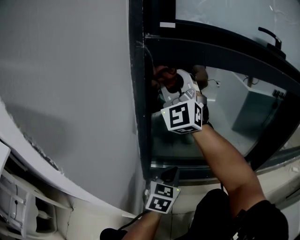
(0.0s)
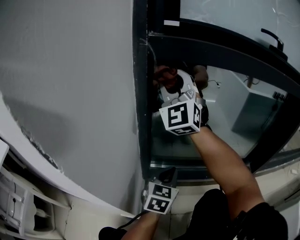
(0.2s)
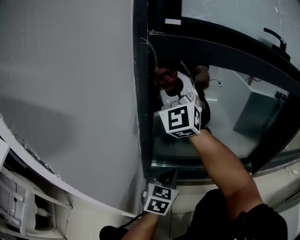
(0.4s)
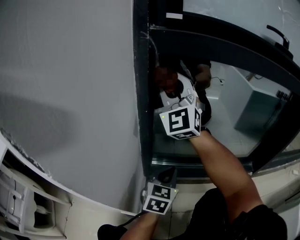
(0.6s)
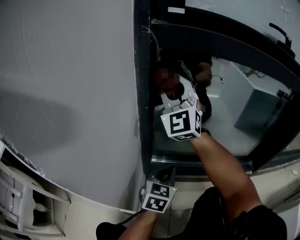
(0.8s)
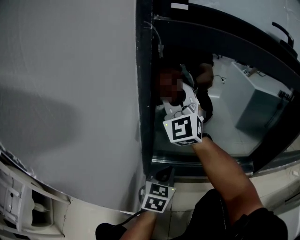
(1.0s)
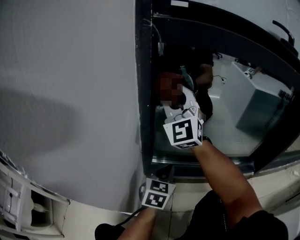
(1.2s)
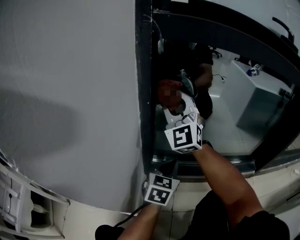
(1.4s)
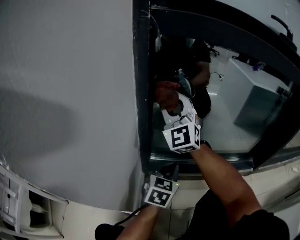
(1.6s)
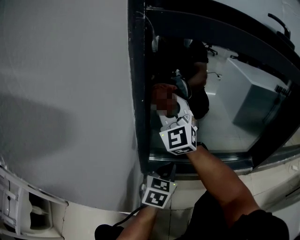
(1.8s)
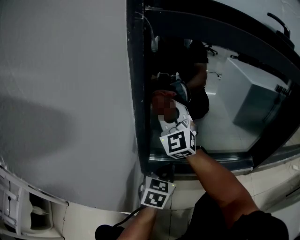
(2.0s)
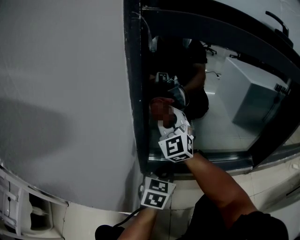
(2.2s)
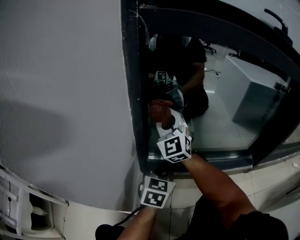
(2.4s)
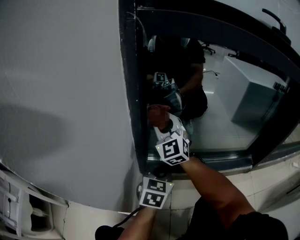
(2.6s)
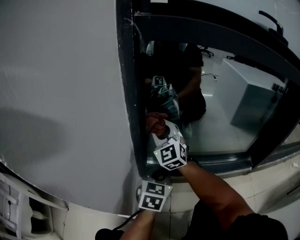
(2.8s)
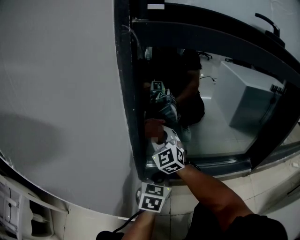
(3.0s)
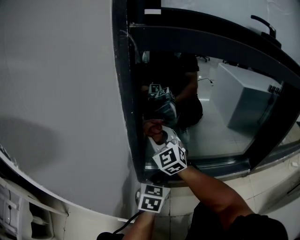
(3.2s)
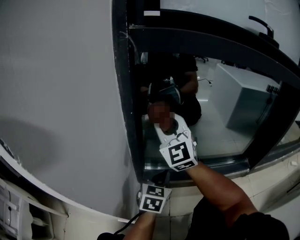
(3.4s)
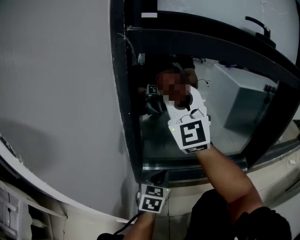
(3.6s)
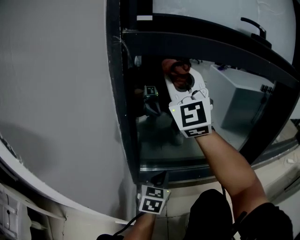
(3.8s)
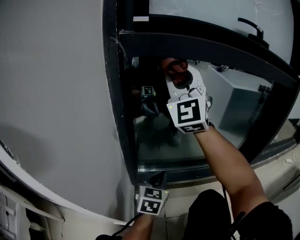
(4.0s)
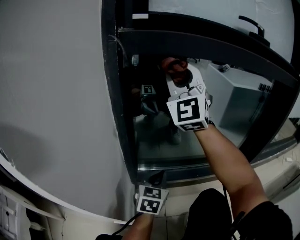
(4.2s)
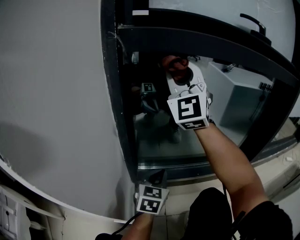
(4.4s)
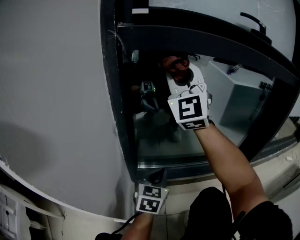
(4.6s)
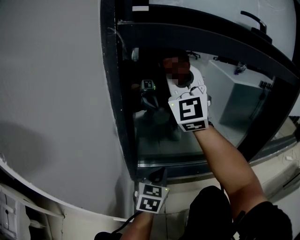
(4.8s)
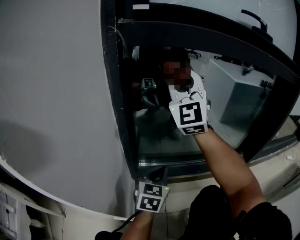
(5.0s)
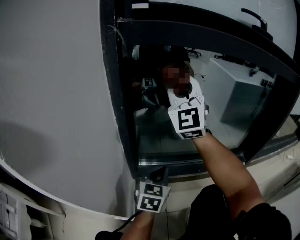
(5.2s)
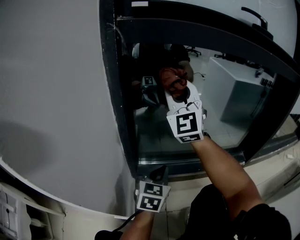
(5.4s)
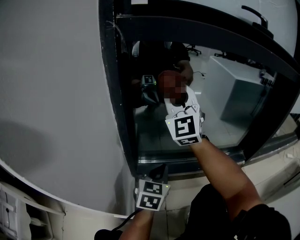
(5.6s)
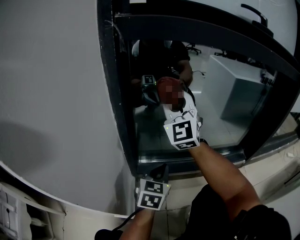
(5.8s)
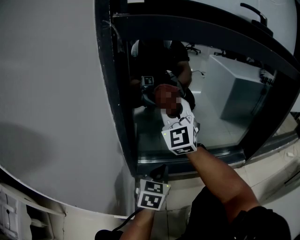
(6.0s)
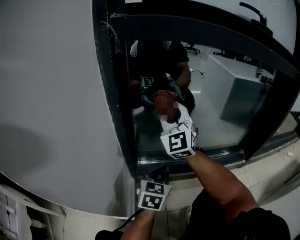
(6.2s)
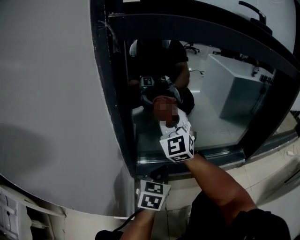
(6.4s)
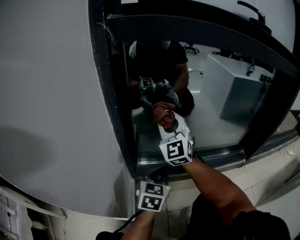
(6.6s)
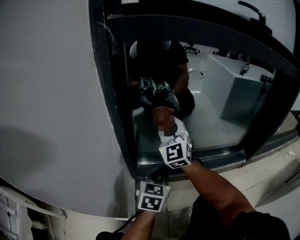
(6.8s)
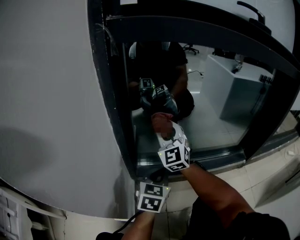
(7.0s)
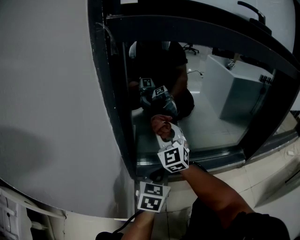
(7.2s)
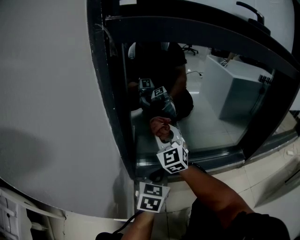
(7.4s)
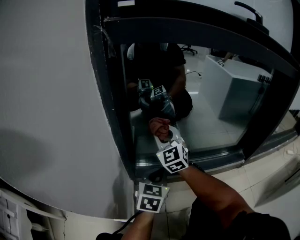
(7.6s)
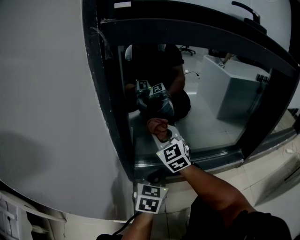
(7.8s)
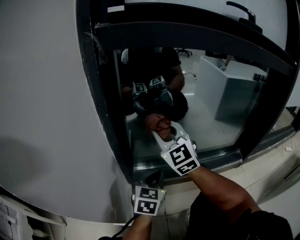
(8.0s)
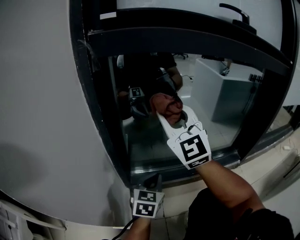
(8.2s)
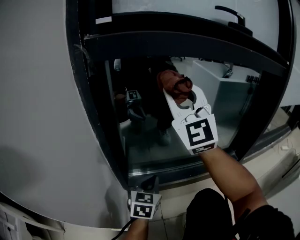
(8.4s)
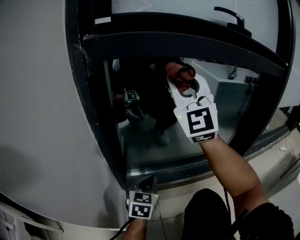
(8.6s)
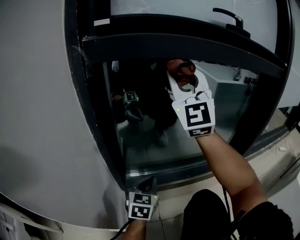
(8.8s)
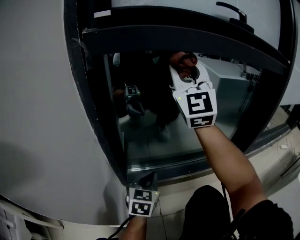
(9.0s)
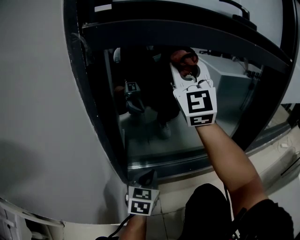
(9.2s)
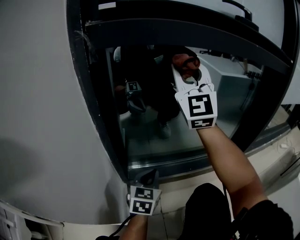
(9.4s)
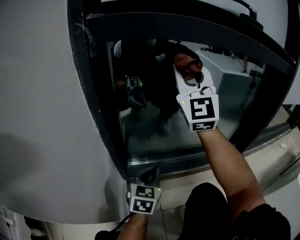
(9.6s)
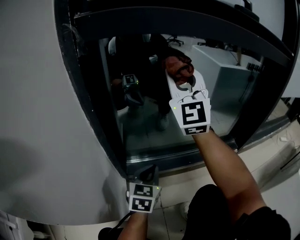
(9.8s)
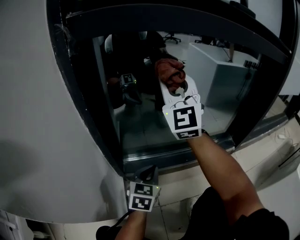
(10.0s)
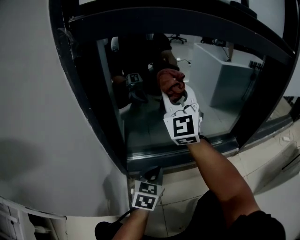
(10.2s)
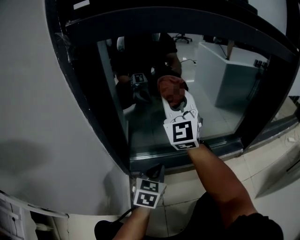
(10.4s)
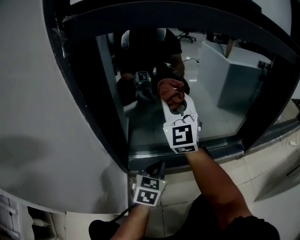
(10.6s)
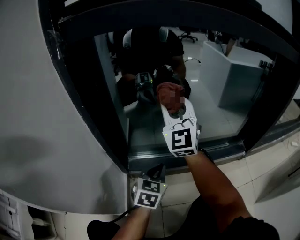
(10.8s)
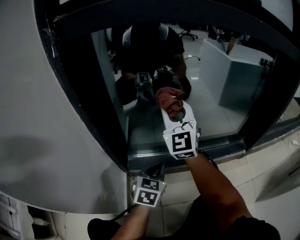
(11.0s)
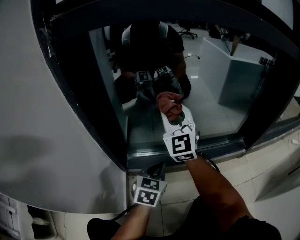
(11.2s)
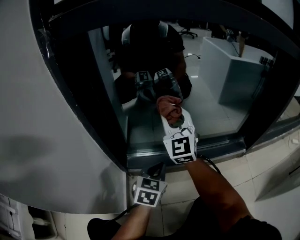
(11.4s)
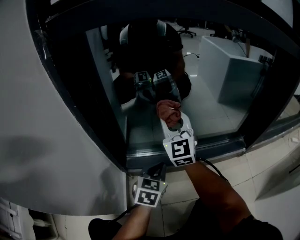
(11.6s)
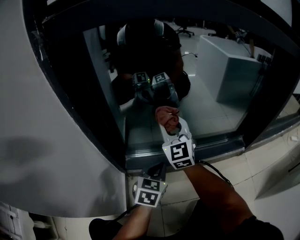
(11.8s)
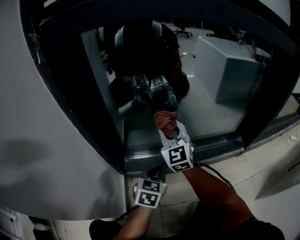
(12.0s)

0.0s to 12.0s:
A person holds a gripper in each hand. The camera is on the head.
0.0s to 1.6s: The right gripper moves downward, approximately 15 cm, while the left gripper shifts approximately 5 cm downward.
1.6s to 3.0s: The right gripper shifts approximately 15 cm downward.
3.0s to 4.4s: The right gripper travels upward by approximately 30 cm, and swivels about 30 degrees.
4.4s to 6.0s: The right gripper shifts some 15 cm downward.
6.0s to 7.6s: The right gripper shifts about 15 cm downward, and changes its angle by about 20 degrees.
7.6s to 9.0s: The right gripper heads upward, covering some 30 cm, and tips its fingers upward by approximately 30 degrees.
9.0s to 10.4s: The right gripper heads downward, covering some 15 cm.
10.4s to 12.0s: The left gripper changes place by some 5 cm; the right gripper moves downward, approximately 15 cm.

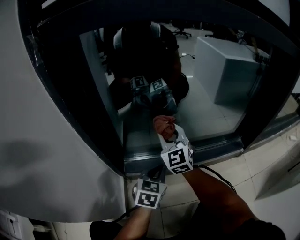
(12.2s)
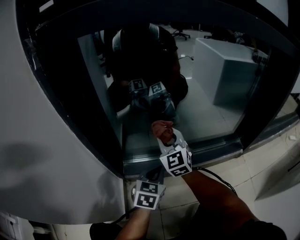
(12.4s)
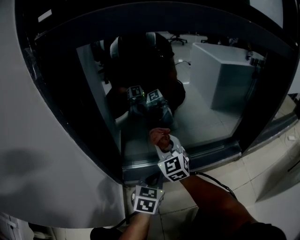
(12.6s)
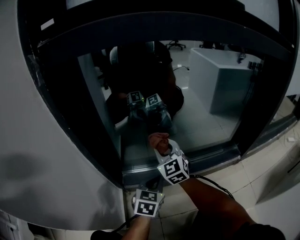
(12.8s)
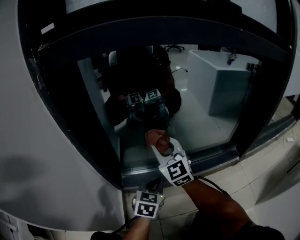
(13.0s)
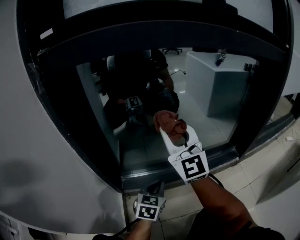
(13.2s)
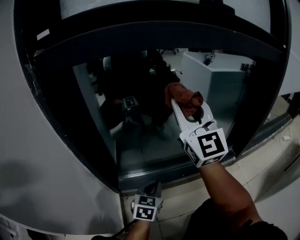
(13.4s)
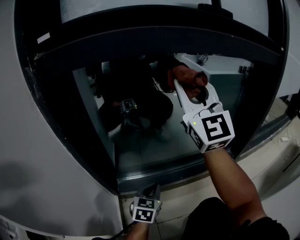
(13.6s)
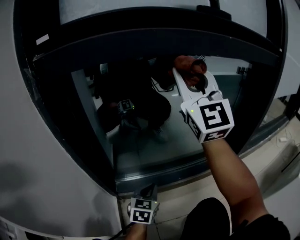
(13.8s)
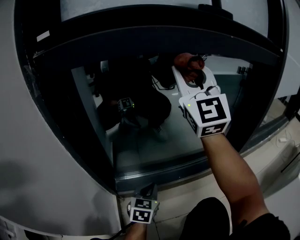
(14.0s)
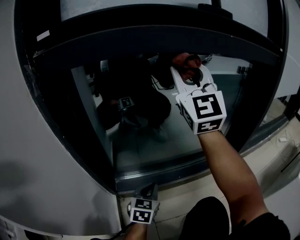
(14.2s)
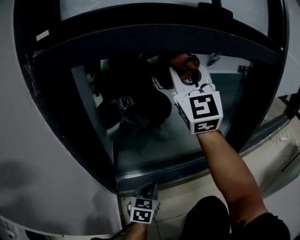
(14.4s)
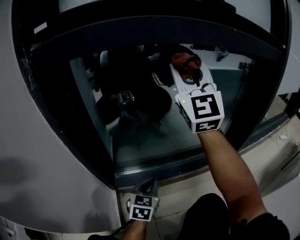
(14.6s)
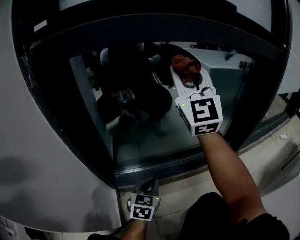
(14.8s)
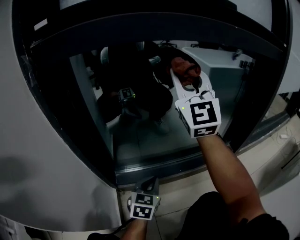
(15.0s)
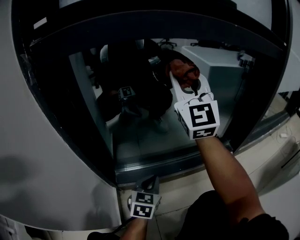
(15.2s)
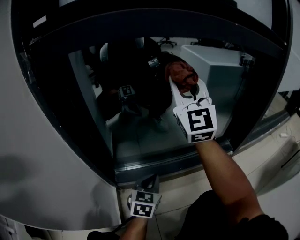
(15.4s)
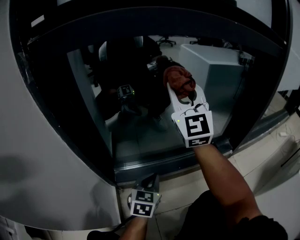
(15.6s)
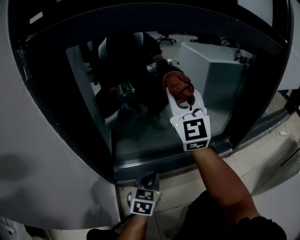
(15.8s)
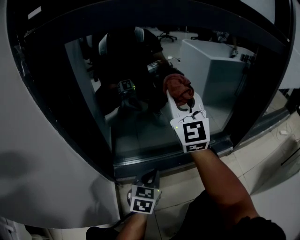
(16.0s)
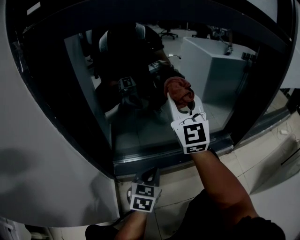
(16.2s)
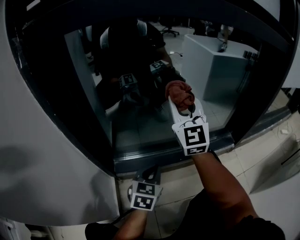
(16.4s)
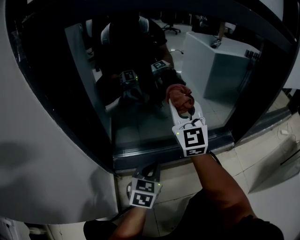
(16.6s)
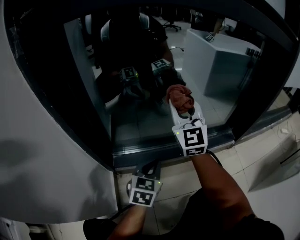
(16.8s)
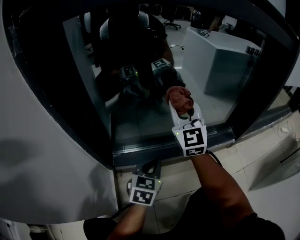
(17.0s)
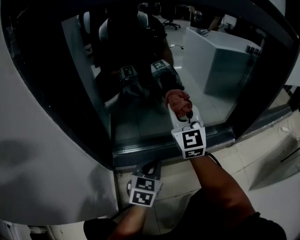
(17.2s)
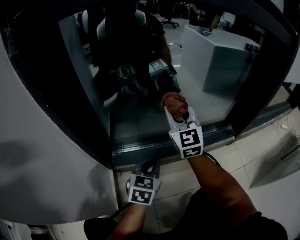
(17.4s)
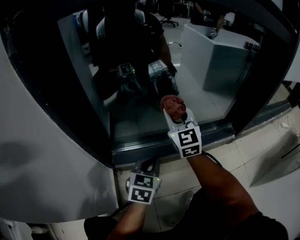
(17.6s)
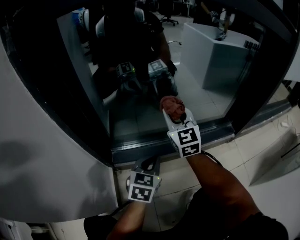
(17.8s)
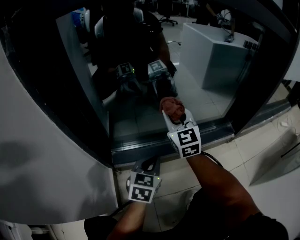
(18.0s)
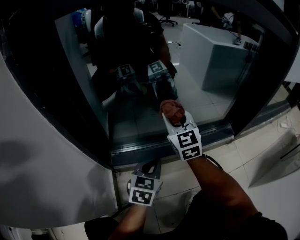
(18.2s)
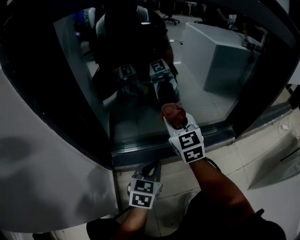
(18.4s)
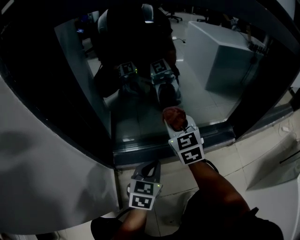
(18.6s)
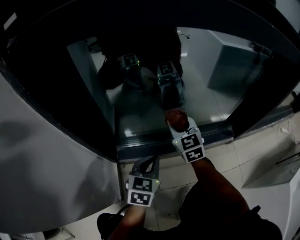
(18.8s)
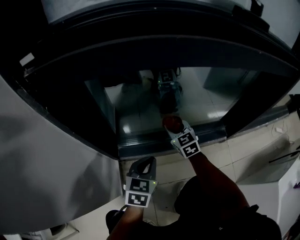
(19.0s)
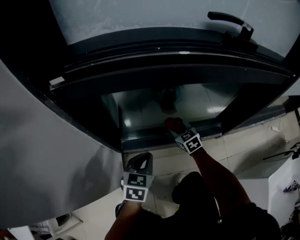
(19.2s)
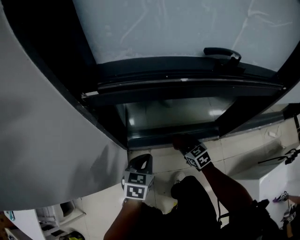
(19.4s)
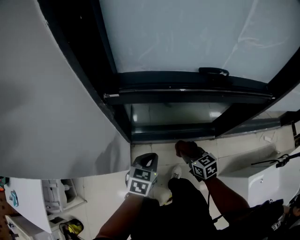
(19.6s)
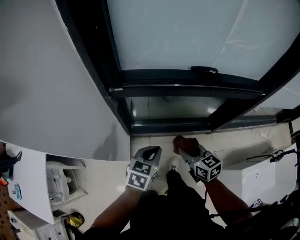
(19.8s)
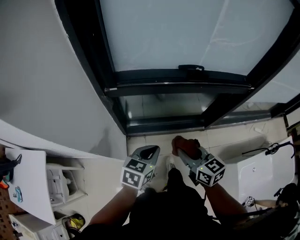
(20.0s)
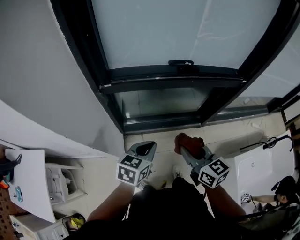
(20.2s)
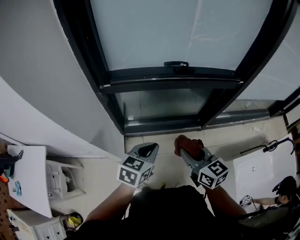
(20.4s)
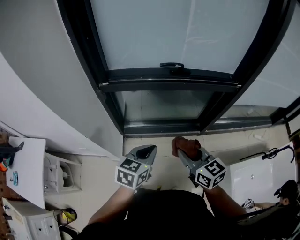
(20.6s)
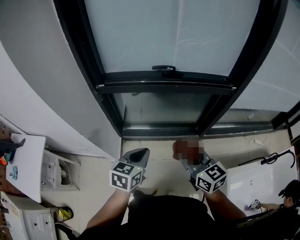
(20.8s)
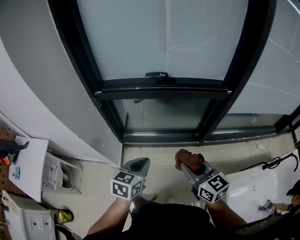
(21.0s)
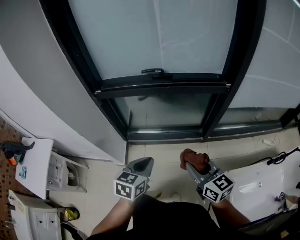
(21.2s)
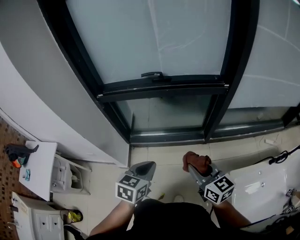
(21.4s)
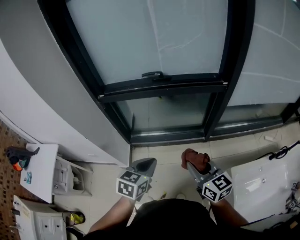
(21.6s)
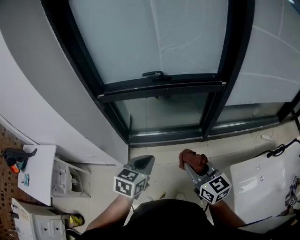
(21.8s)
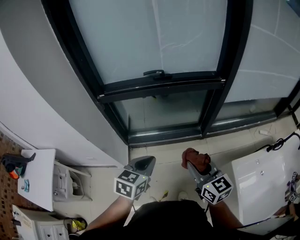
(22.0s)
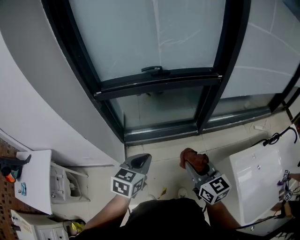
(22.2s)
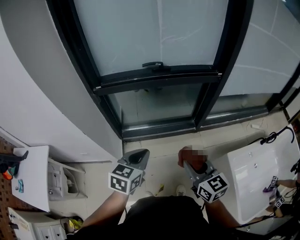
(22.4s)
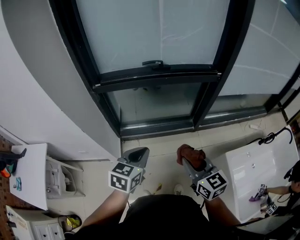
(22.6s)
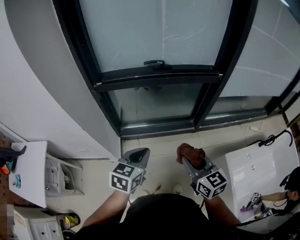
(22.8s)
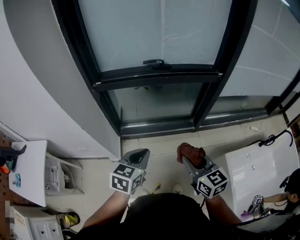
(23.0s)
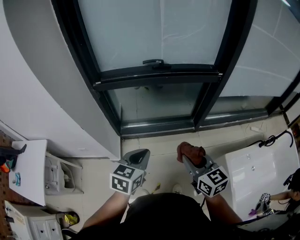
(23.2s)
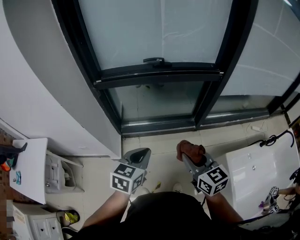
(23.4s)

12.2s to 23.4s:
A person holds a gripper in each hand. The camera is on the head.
12.2s to 13.8s: The right gripper shifts about 35 cm upward, and swivels some 30 degrees.
13.8s to 15.4s: The right gripper is displaced downward by about 10 cm.
15.4s to 17.0s: The right gripper moves downward, roughly 20 cm.
17.0s to 18.6s: The right gripper is displaced downward by about 10 cm, and changes its angle by roughly 30 degrees.
18.6s to 20.2s: The two grippers go approximately 60 cm upward and backward. The right gripper turns by approximately 30 degrees.
20.2s to 21.8s: The left gripper travels to the right, backward and upward by some 20 cm, while the right gripper is displaced to the right and backward by roughly 25 cm.
21.8s to 23.4s: The left gripper shifts by about 5 cm.

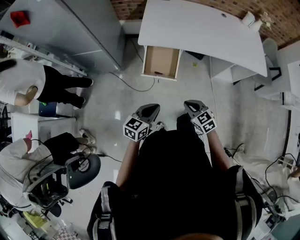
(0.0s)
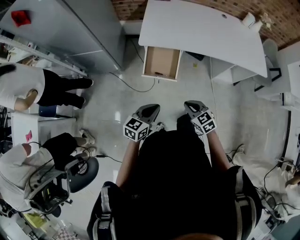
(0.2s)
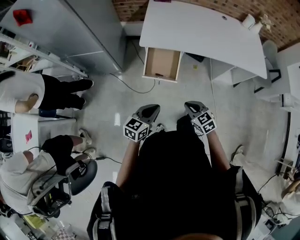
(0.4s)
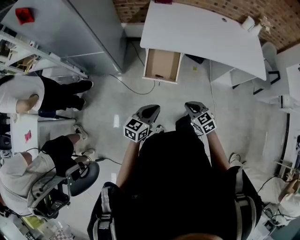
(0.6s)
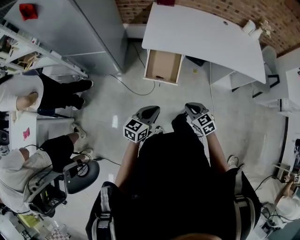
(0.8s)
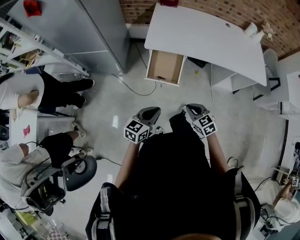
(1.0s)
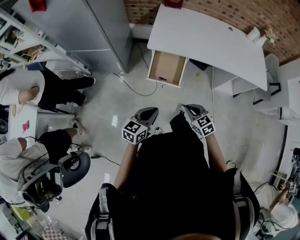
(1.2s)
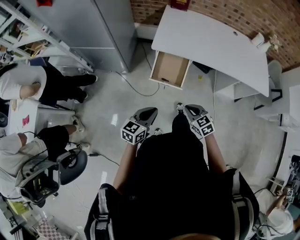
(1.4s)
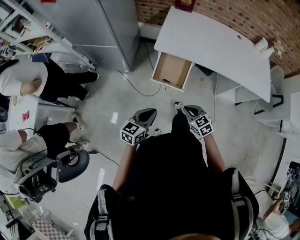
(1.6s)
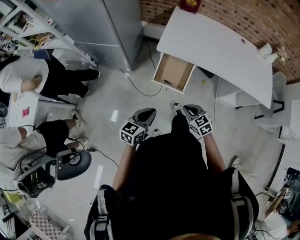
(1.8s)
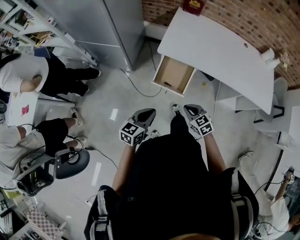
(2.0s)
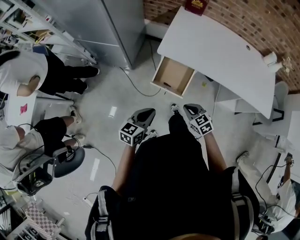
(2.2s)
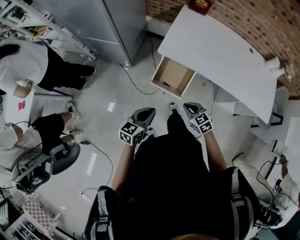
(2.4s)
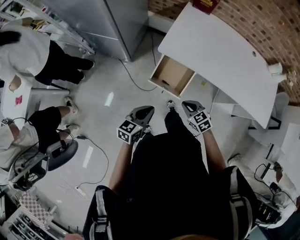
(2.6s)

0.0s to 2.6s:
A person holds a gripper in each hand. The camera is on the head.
0.0s to 1.2s: The grippers move only a little.
1.2s to 2.6s: Both grippers travel together forward, some 15 cm.
